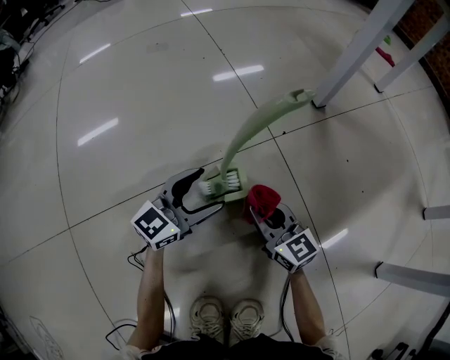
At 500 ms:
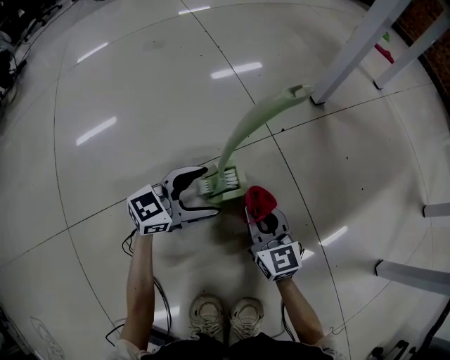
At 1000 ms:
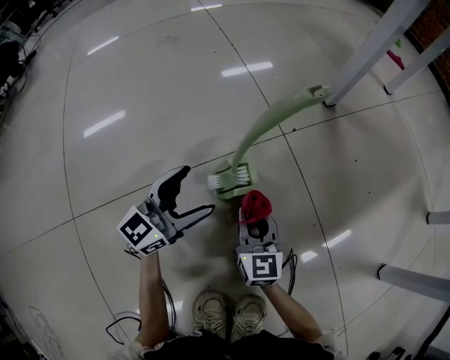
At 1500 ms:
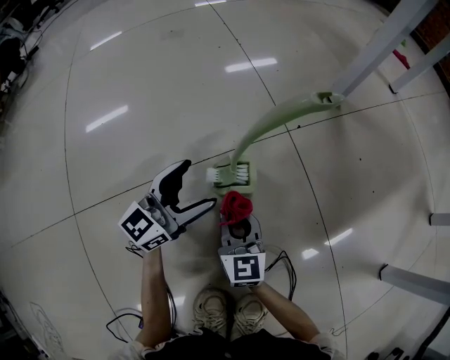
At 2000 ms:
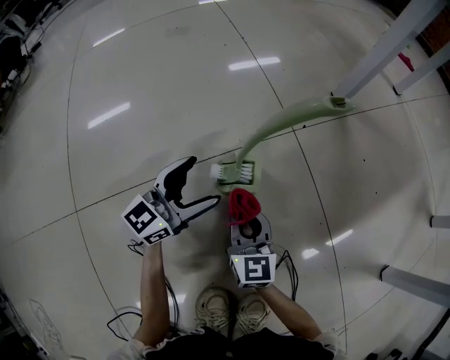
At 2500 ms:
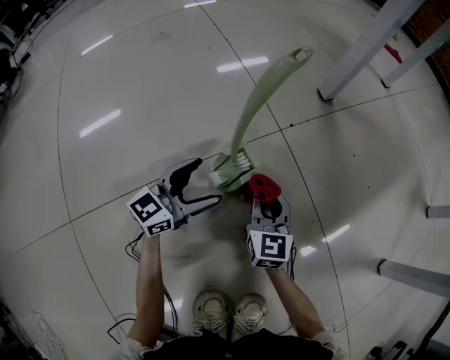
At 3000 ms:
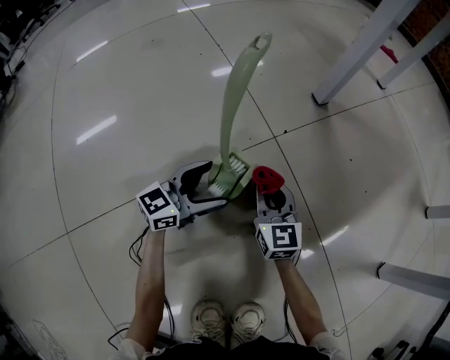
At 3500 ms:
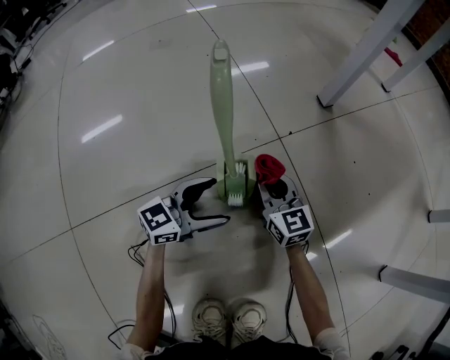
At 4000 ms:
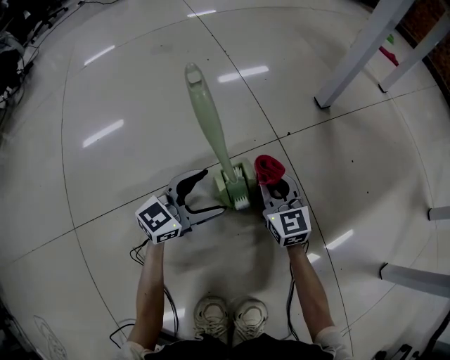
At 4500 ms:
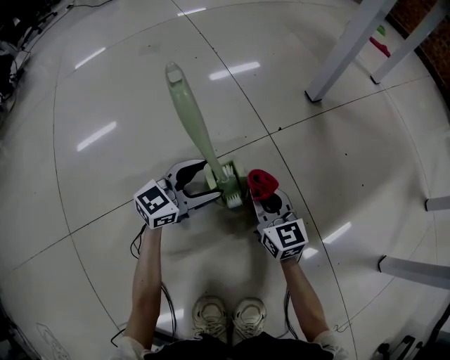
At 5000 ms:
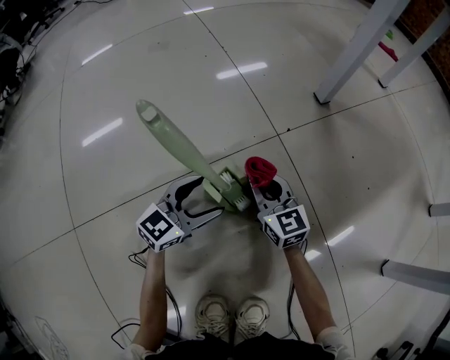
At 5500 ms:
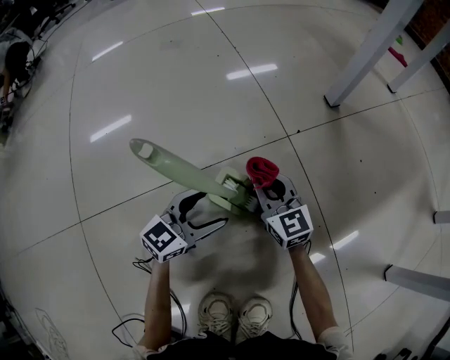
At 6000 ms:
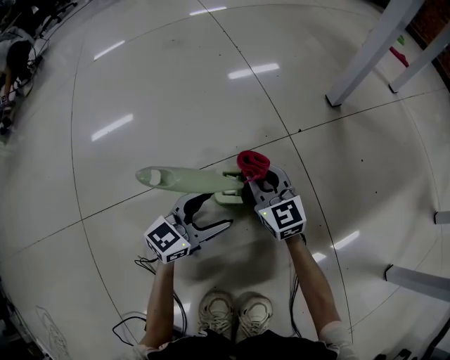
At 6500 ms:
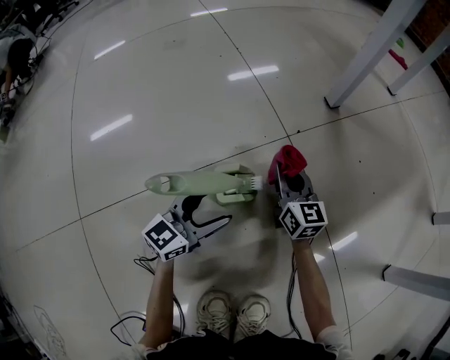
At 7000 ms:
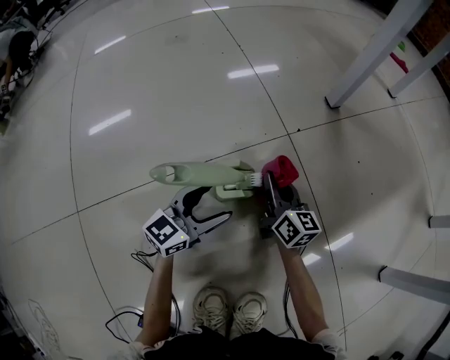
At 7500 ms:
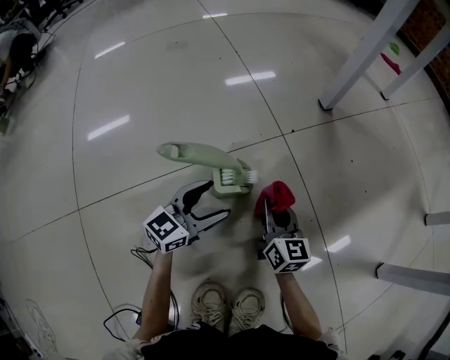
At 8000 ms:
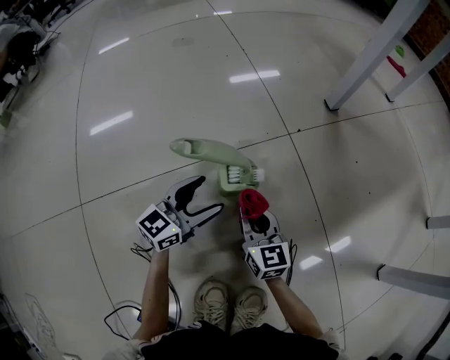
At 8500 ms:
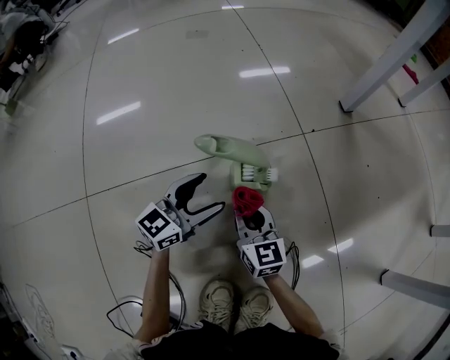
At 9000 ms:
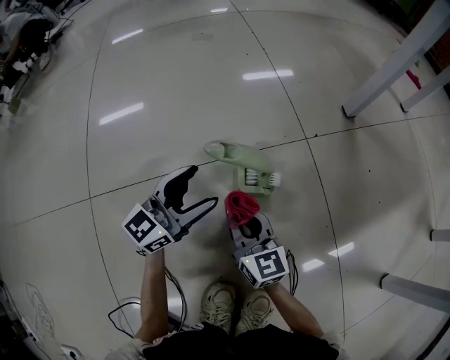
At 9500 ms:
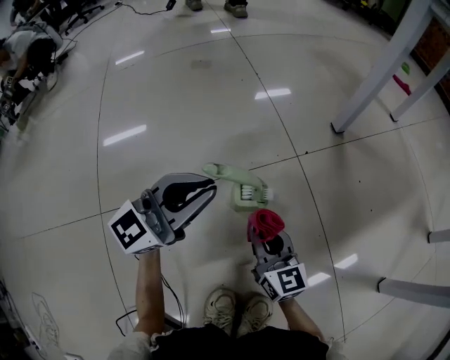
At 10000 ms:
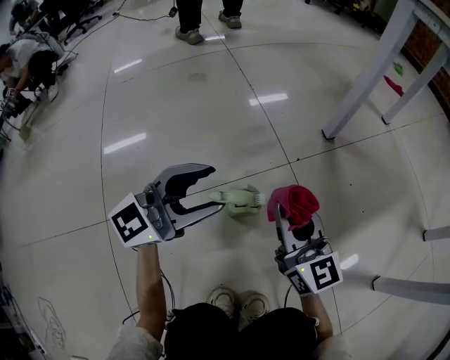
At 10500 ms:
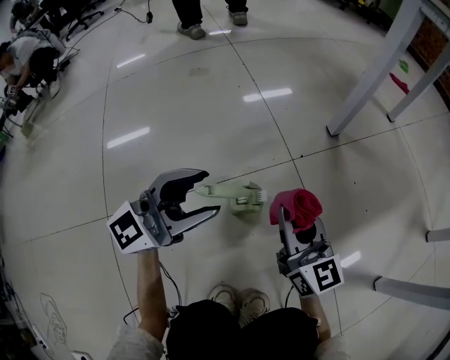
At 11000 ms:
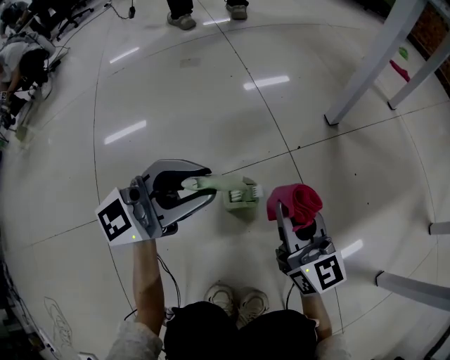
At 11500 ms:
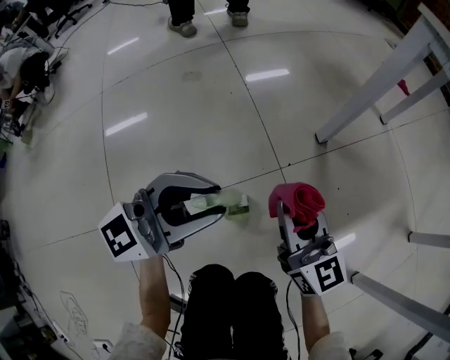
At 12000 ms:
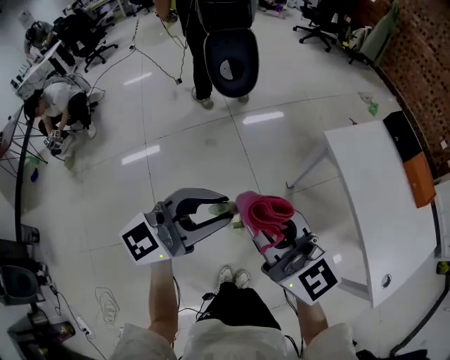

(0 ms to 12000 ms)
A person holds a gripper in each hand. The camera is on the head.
0 ms - 2000 ms: The left gripper shifts by some 5 cm. Meanwhile the right gripper goes some 5 cm to the left, and rotates some 20 degrees.
2000 ms - 4000 ms: The right gripper is displaced forward by about 15 cm; the left gripper shifts by some 5 cm.
4000 ms - 6000 ms: The left gripper moves backward, approximately 5 cm. The right gripper goes approximately 5 cm to the left.
6000 ms - 8000 ms: The right gripper is displaced backward by approximately 10 cm.
8000 ms - 10000 ms: The two grippers go about 25 cm upward. The left gripper changes its angle by some 30 degrees, and closes, then opens again.
10000 ms - 12000 ms: Both grippers move upward, some 70 cm. The right gripper rotates approximately 20 degrees.

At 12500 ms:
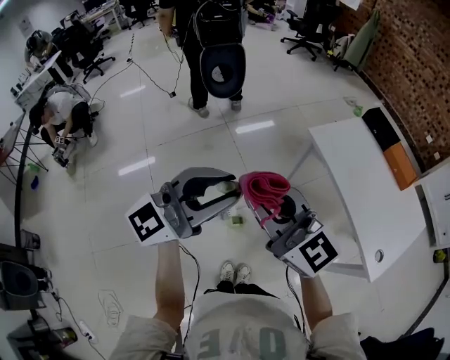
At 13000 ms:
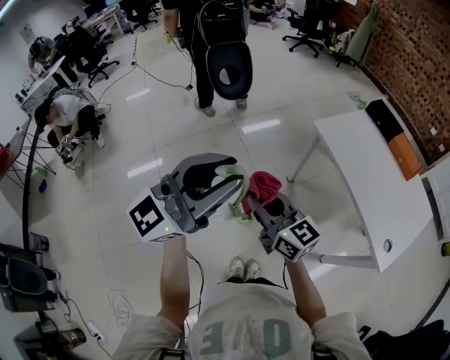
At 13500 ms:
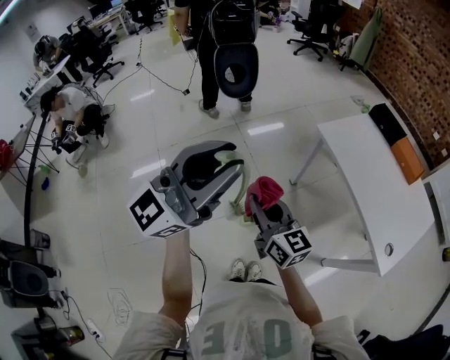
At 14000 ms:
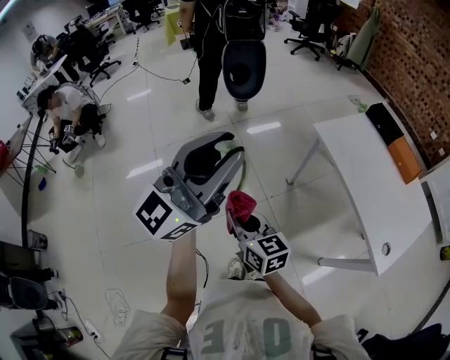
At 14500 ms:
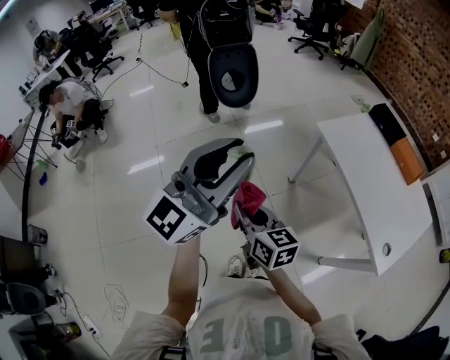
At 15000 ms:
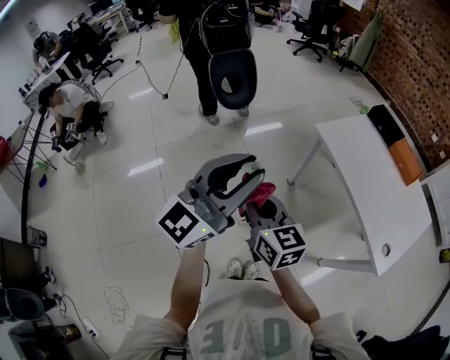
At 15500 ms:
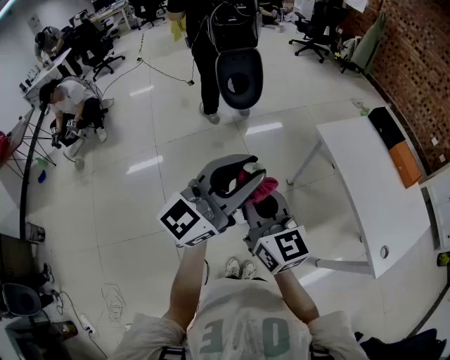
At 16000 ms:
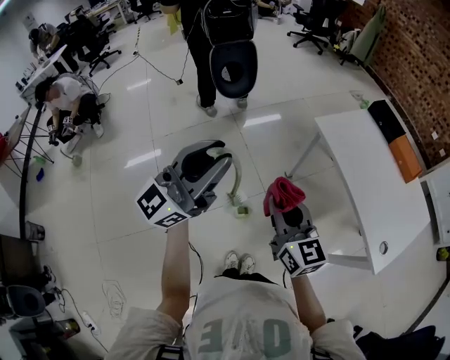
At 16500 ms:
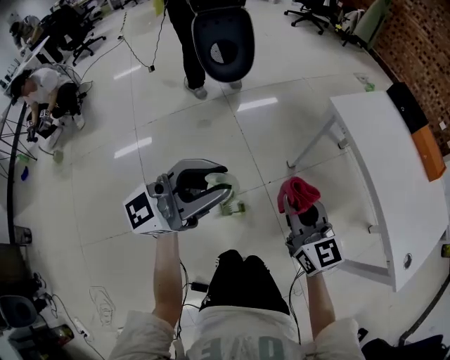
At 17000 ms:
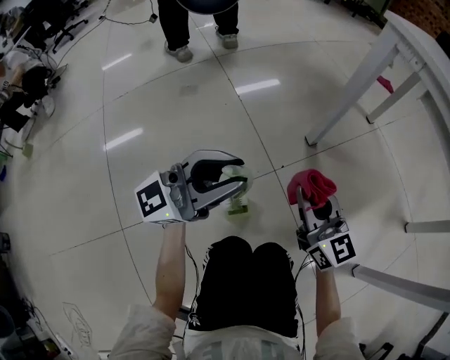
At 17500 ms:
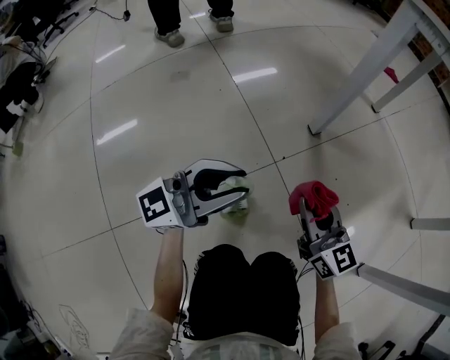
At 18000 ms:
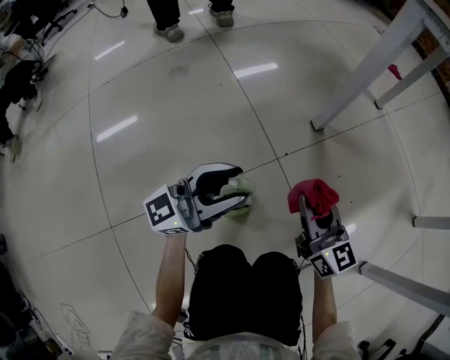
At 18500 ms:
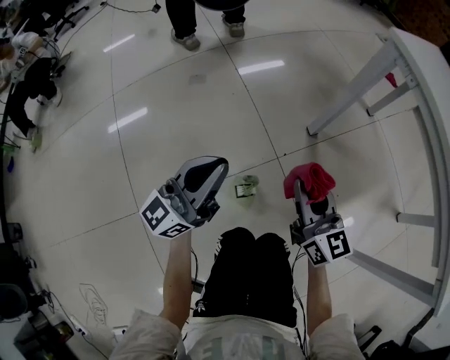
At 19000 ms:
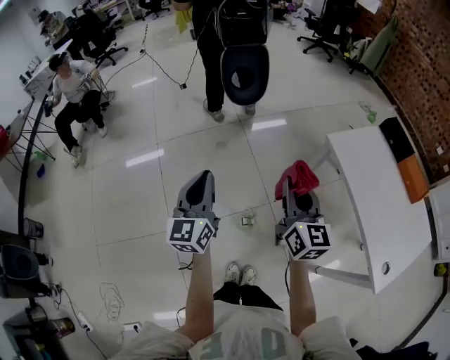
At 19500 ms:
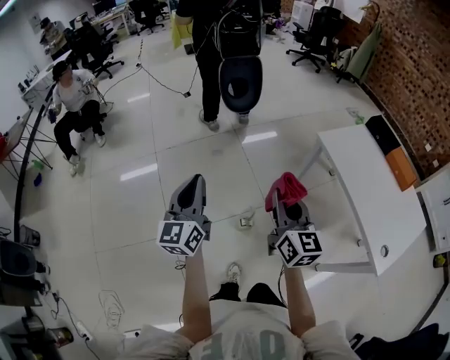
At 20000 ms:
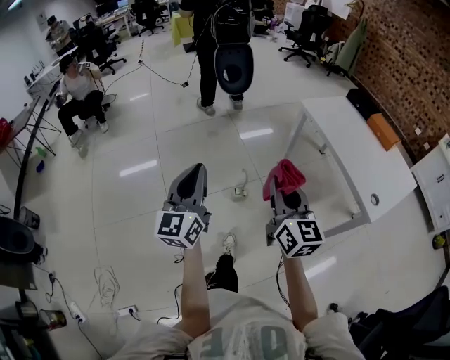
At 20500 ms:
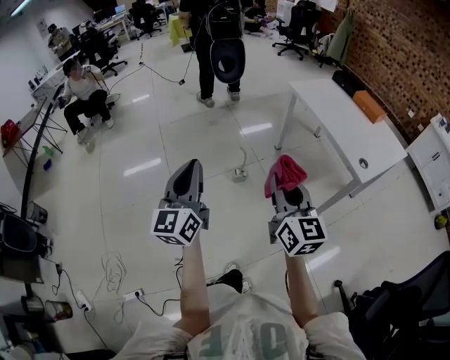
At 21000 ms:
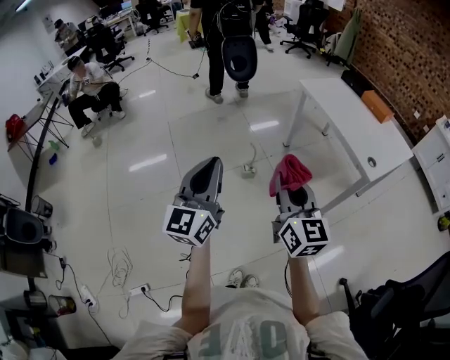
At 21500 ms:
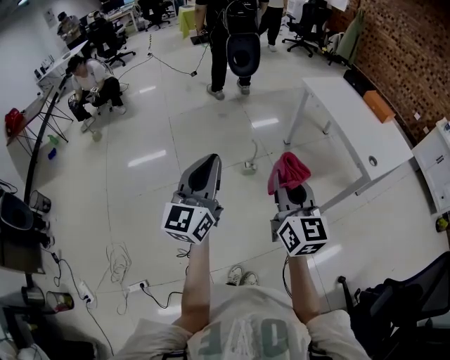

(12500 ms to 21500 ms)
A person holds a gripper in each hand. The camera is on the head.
12500 ms - 14500 ms: The right gripper heads downward, covering some 20 cm, and rotates some 40 degrees.
14500 ms - 17000 ms: The two grippers go about 60 cm downward. The right gripper swivels roughly 30 degrees; the left gripper changes its angle by some 30 degrees.
17000 ms - 19500 ms: The grippers both shift upward by roughly 60 cm. The left gripper changes its angle by roughly 60 degrees.
19500 ms - 21500 ms: The pair of grippers is taken backward, approximately 50 cm.

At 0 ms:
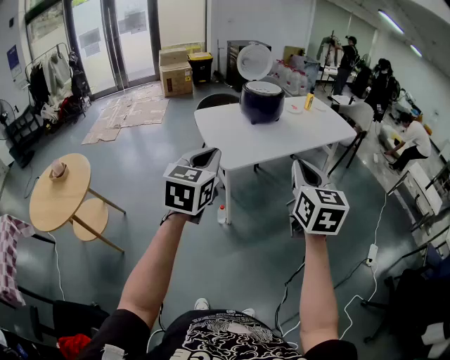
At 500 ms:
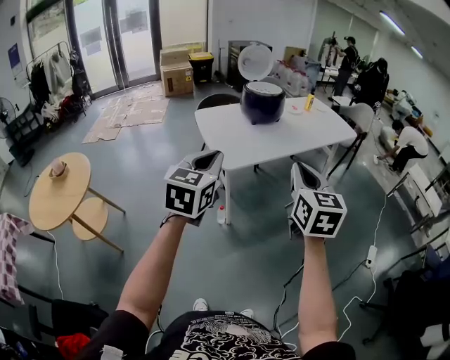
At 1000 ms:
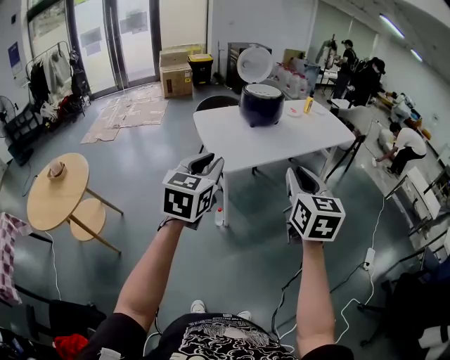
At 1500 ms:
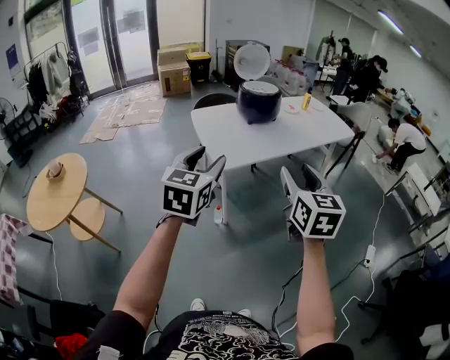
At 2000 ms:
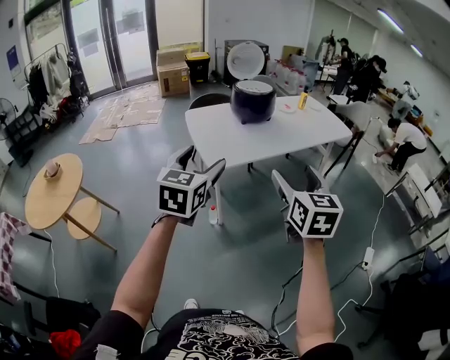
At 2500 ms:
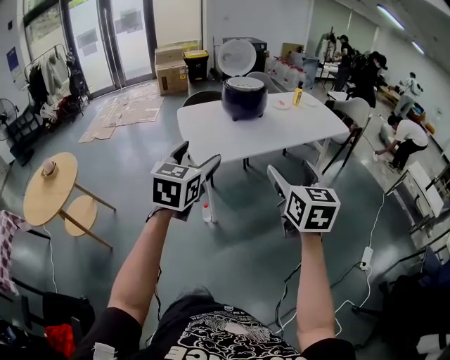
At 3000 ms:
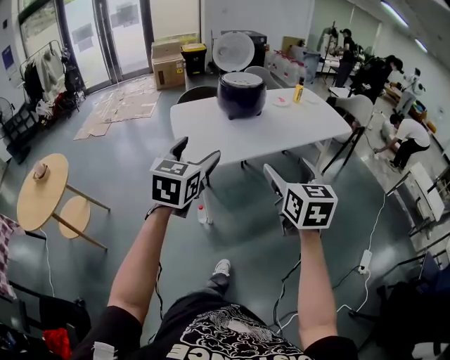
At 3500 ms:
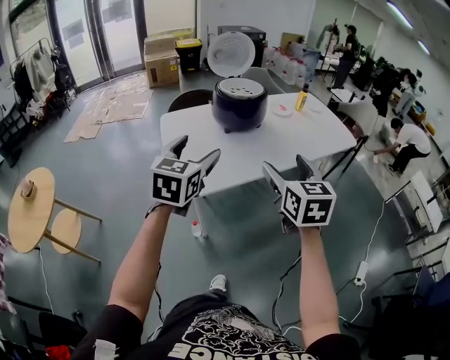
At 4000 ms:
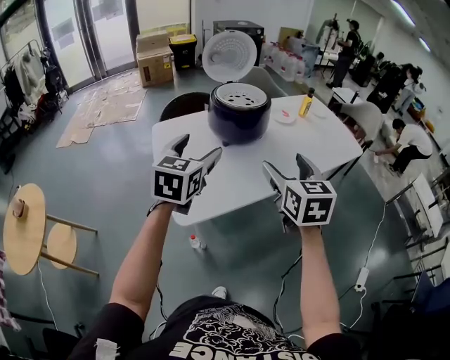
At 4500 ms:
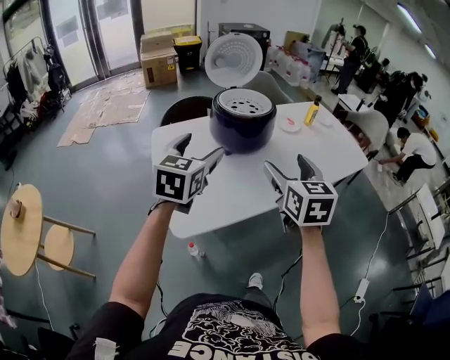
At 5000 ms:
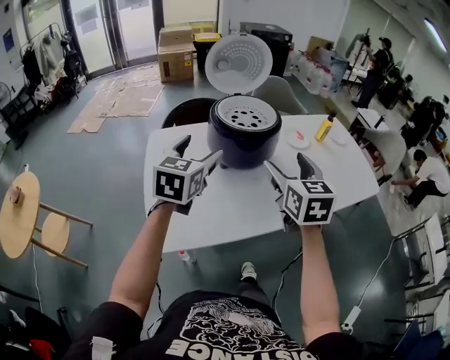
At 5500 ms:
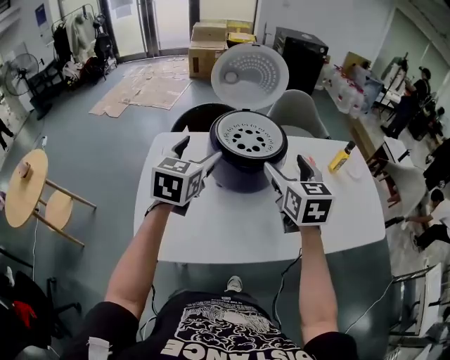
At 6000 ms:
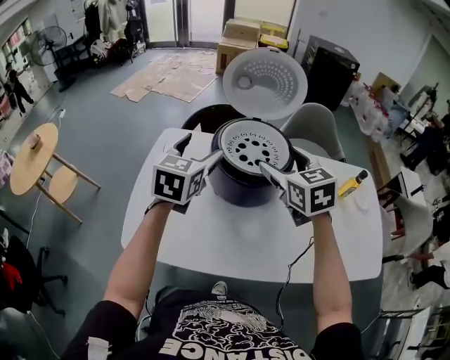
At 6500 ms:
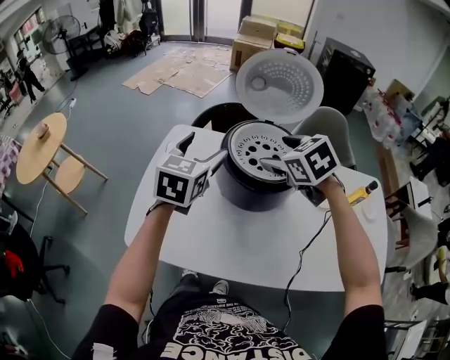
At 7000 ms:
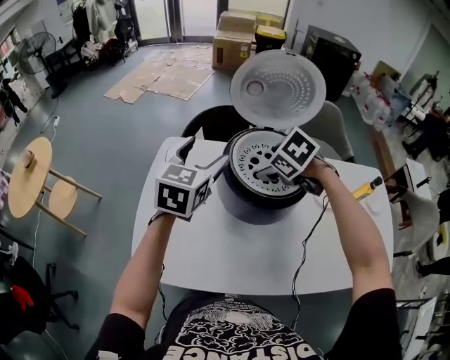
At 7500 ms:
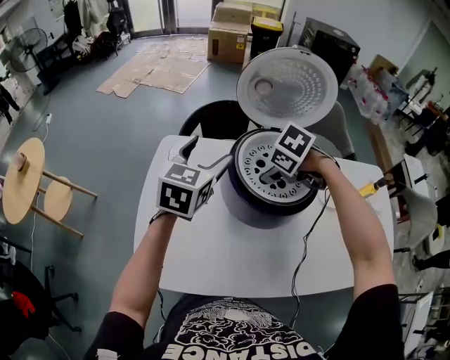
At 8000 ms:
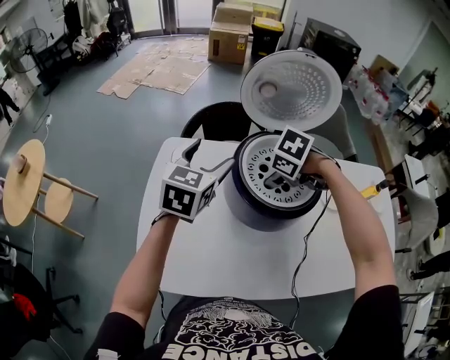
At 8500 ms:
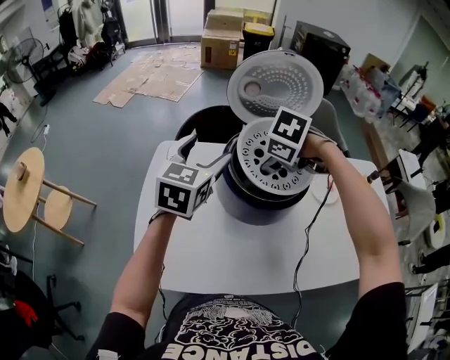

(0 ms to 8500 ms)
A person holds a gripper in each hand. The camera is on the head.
0 ms - 2000 ms: Both grippers move to the right, roughly 5 cm. The right gripper opens up, while the left gripper opens its fingers.
2000 ms - 4000 ms: The two grippers travel together, forward, roughly 60 cm.
4000 ms - 6500 ms: The two grippers travel together, about 50 cm. The right gripper swivels roughly 70 degrees. The left gripper changes its angle by some 30 degrees.
6500 ms - 8500 ms: The right gripper ends up some 15 cm from where it was, and points its fingers approximately 30 degrees further downward. The left gripper shifts by approximately 10 cm.
